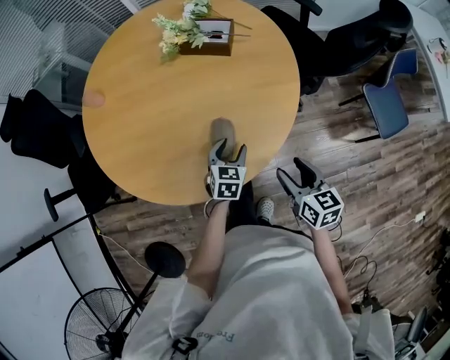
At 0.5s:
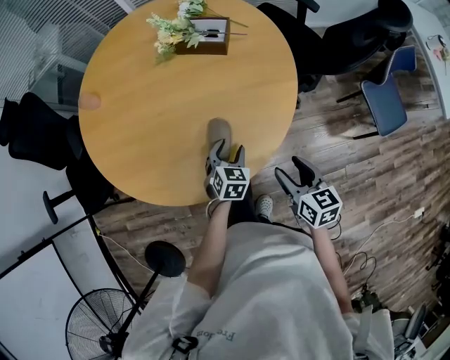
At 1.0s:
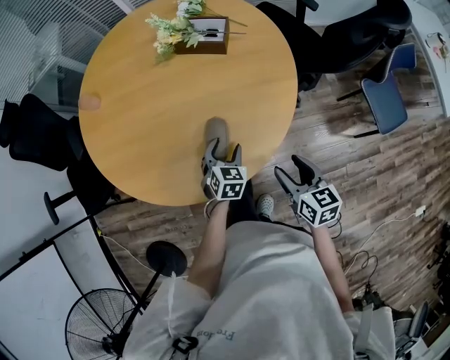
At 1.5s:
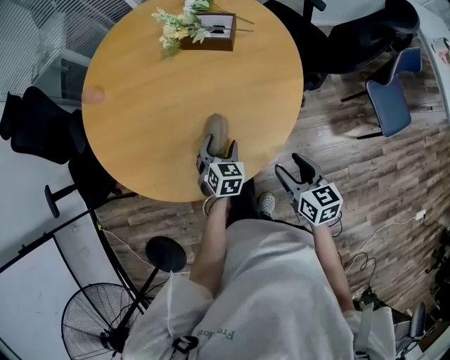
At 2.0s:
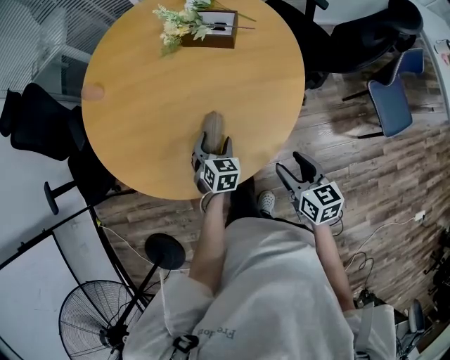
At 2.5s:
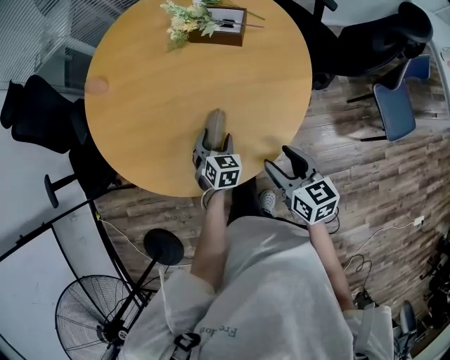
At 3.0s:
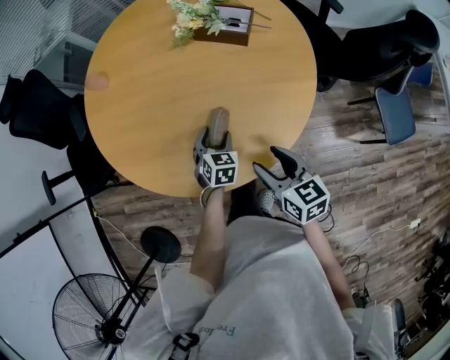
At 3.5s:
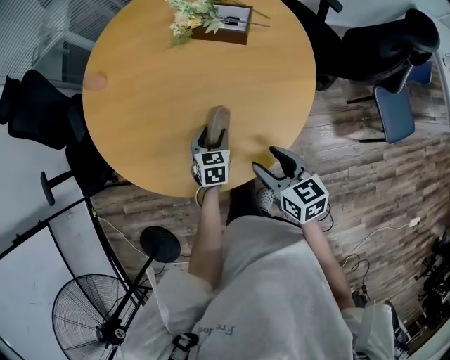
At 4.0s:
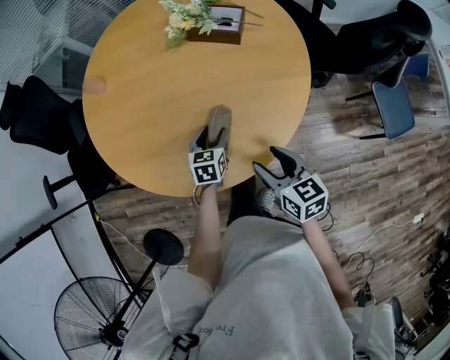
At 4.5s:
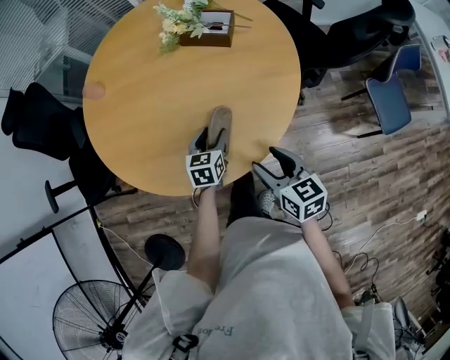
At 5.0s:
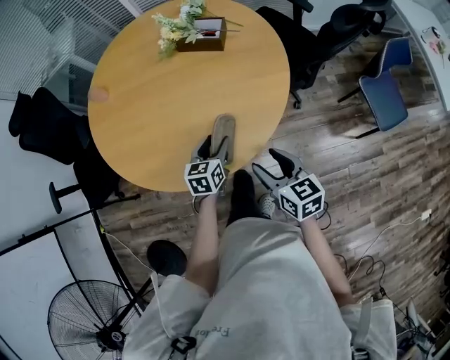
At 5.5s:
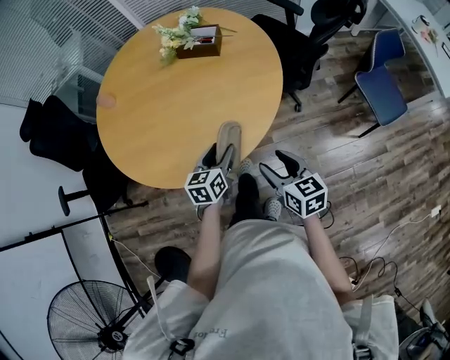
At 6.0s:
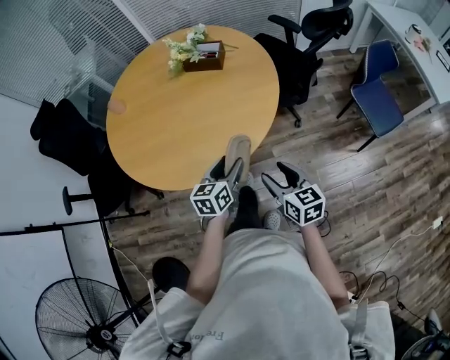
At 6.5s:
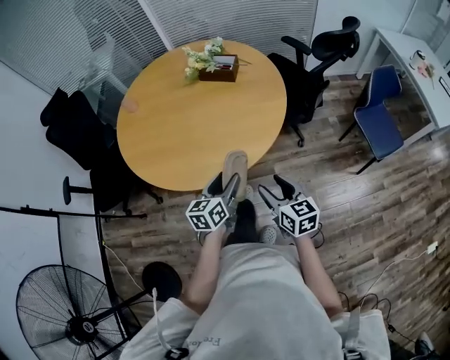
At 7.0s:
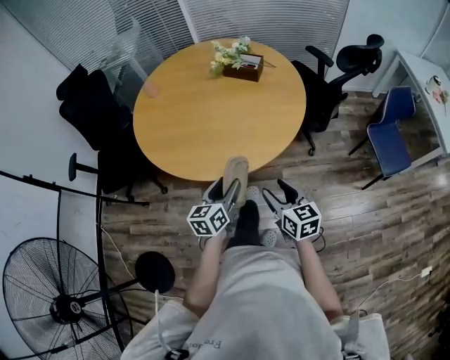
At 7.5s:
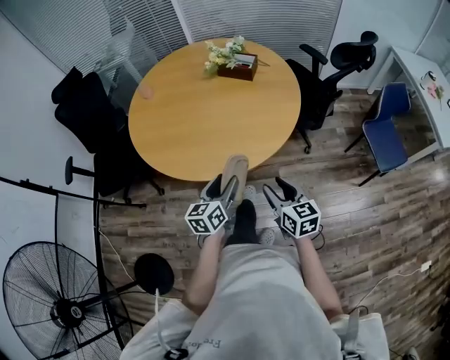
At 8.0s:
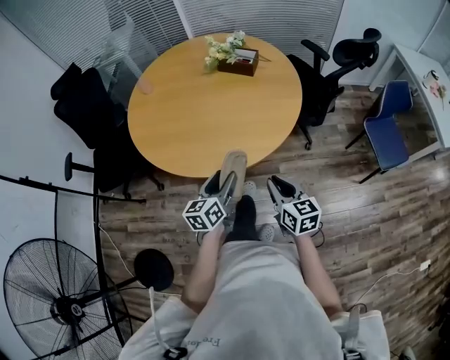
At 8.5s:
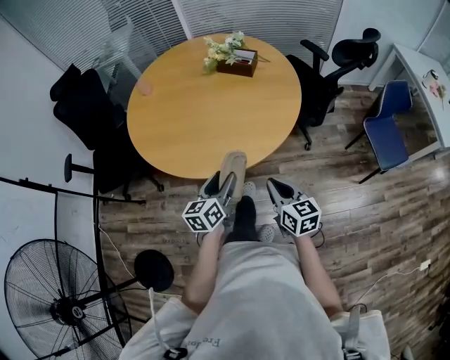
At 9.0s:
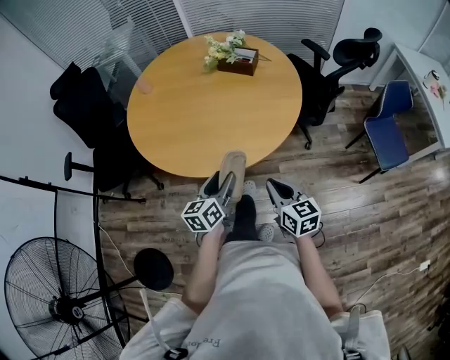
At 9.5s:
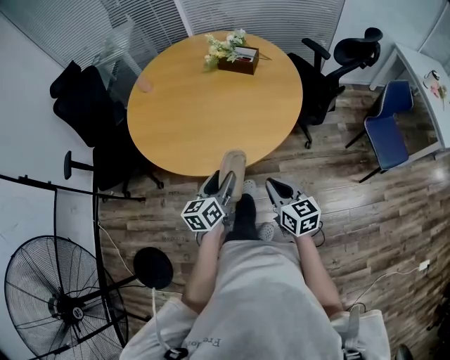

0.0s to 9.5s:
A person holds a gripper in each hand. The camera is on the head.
0.0s to 2.0s: The left gripper goes roughly 5 cm to the left.
2.0s to 4.0s: The right gripper heads to the left, covering some 5 cm. Meanwhile the left gripper rotates some 30 degrees.
4.0s to 5.5s: The left gripper travels backward, upward and to the right by approximately 20 cm; the right gripper shifts approximately 15 cm backward and to the right.
5.5s to 7.5s: The left gripper shifts about 15 cm backward, upward and to the left; the right gripper is displaced backward by some 10 cm.
7.5s to 9.5s: The right gripper closes.

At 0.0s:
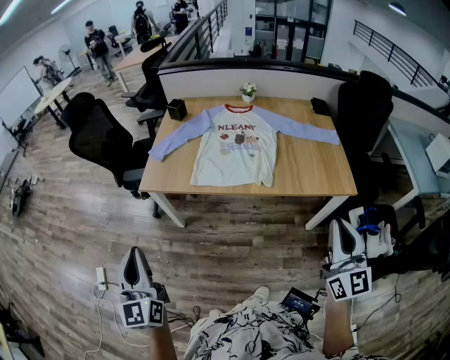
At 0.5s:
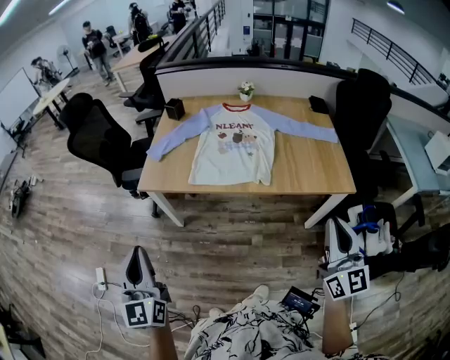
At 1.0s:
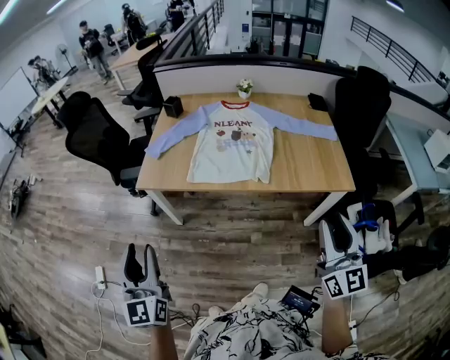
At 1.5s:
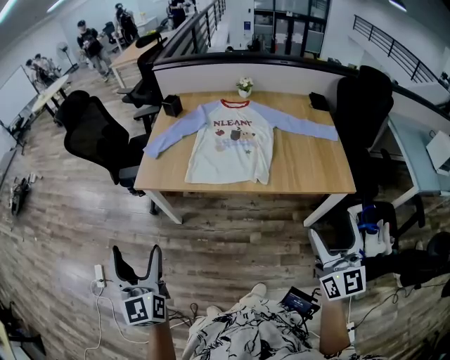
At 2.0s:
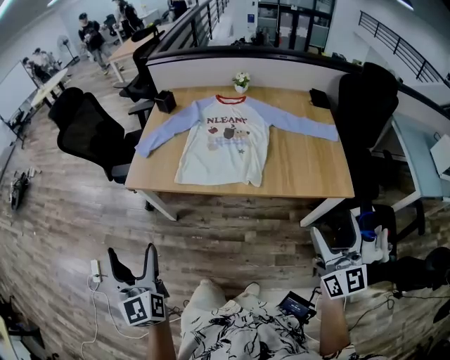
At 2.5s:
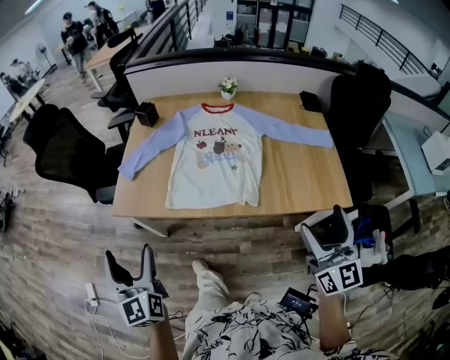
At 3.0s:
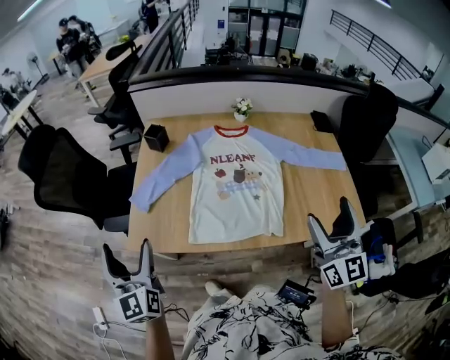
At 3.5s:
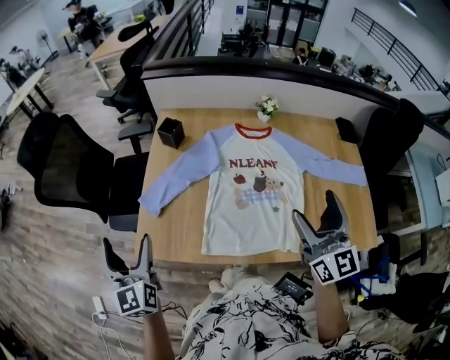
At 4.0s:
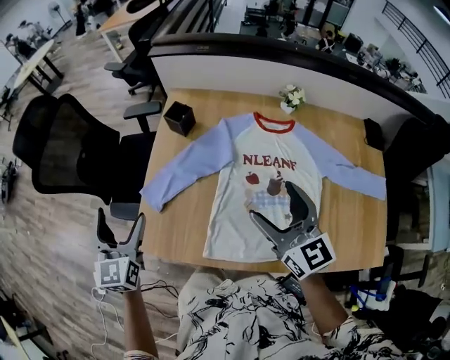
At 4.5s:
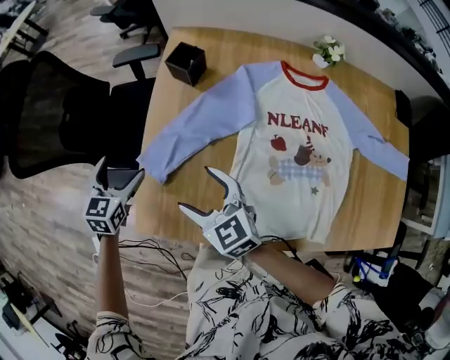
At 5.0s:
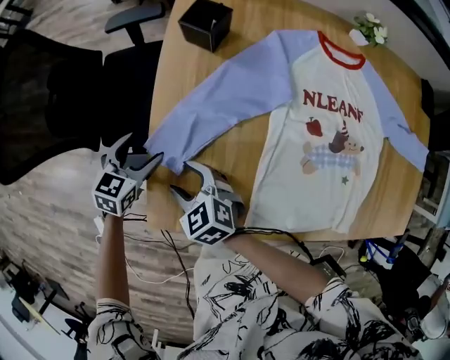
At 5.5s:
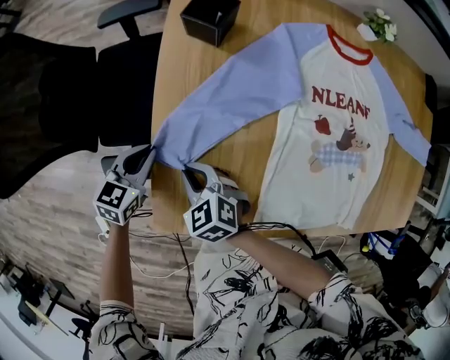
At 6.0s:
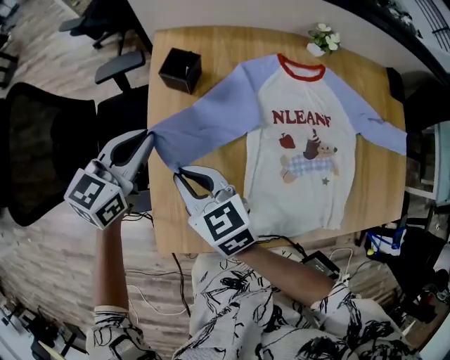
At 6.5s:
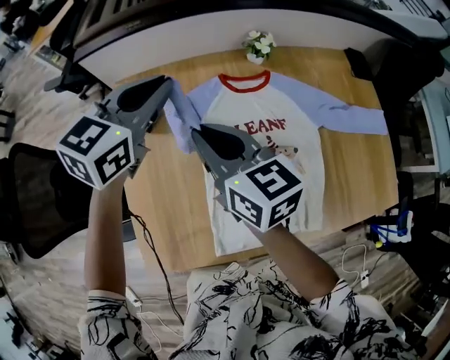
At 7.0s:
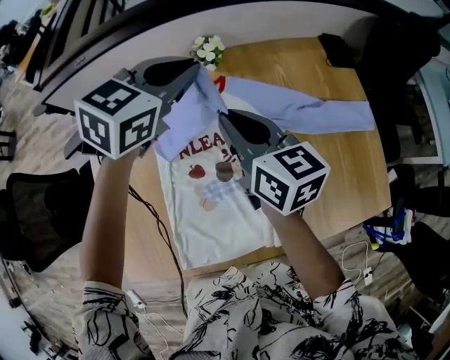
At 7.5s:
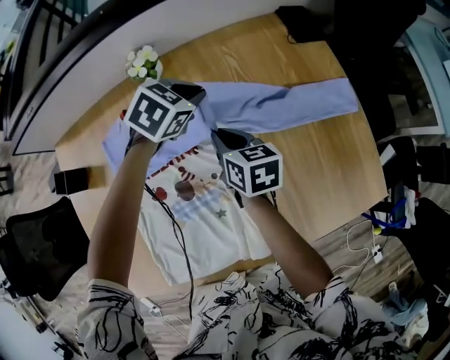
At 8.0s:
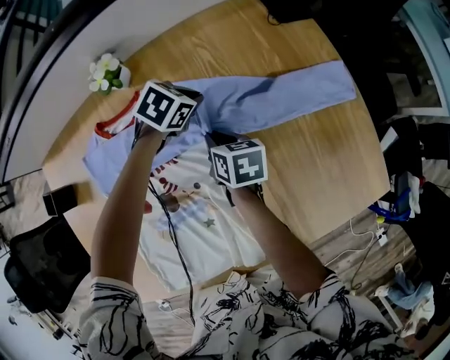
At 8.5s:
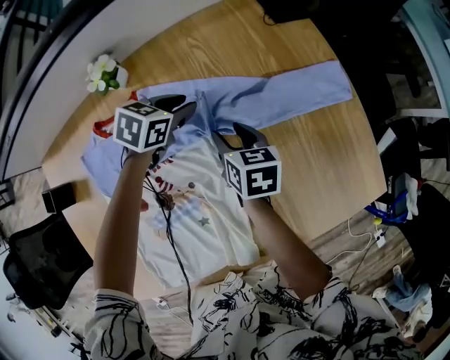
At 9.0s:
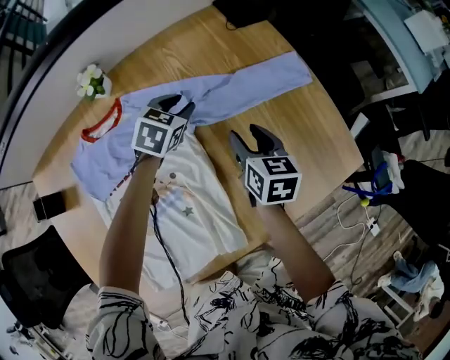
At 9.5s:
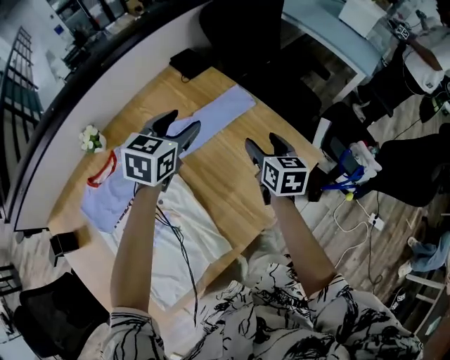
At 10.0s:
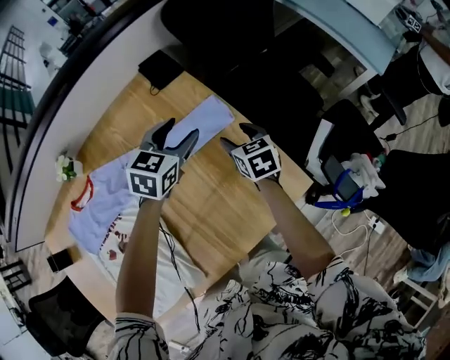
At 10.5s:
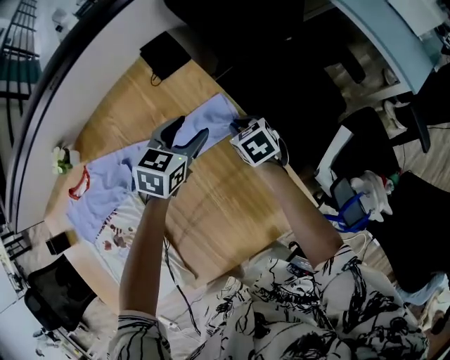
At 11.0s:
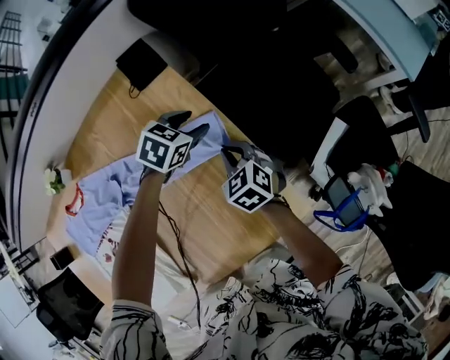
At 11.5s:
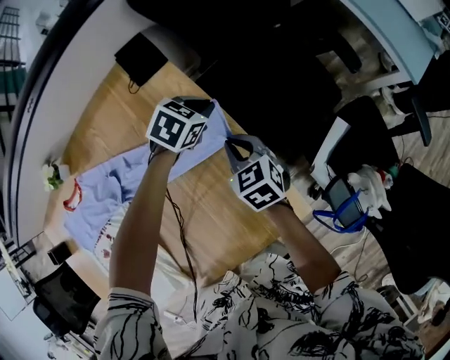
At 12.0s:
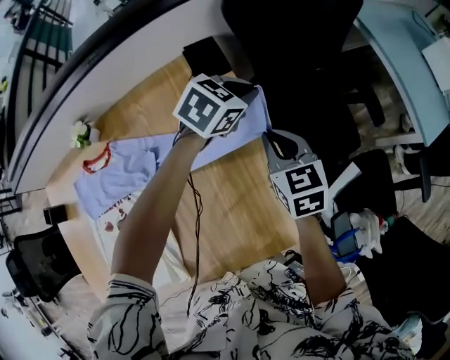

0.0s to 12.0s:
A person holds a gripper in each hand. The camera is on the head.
0.0s to 2.0s: The right gripper heads to the right and forward, covering about 10 cm, and opens. Meanwhile the left gripper travels to the right by some 5 cm, and opens its fingers.
2.0s to 4.0s: The two grippers travel together, forward, about 60 cm. The right gripper changes its angle by about 30 degrees.
4.0s to 6.0s: The right gripper heads to the left, downward and forward, covering some 35 cm, rotates some 30 degrees, and closes up. Meanwhile the left gripper goes about 20 cm forward, reaches roughly 30 cm downward, then returns, changes its angle by about 50 degrees, and closes its fingers.
6.0s to 8.0s: The two grippers travel together, about 70 cm. The right gripper rotates around the line of its fingers by approximately 40 degrees, clockwise from behind; the left gripper tilts its fingers some 40 degrees downward.
8.0s to 10.0s: The left gripper travels to the right and upward by roughly 35 cm, swivels roughly 30 degrees, and opens. The right gripper travels to the right by roughly 40 cm, rotates roughly 30 degrees, and opens.
10.0s to 12.0s: The right gripper travels upward and forward by approximately 10 cm, and closes up, while the left gripper moves forward, some 15 cm, and closes up.

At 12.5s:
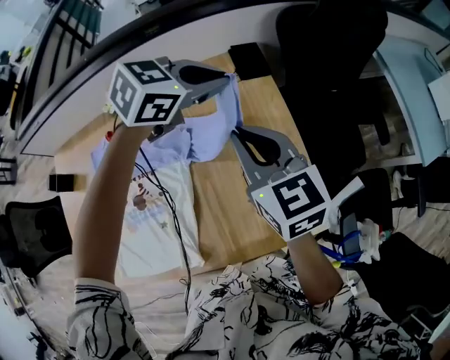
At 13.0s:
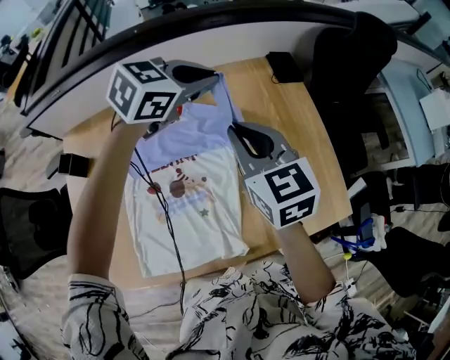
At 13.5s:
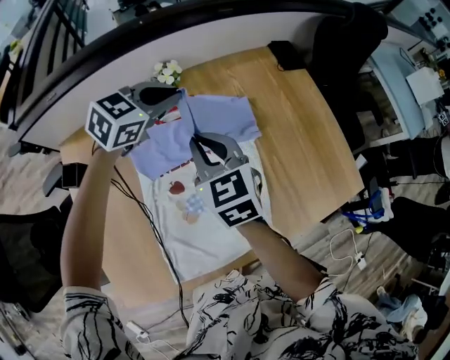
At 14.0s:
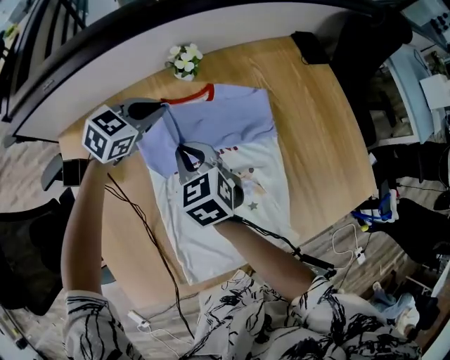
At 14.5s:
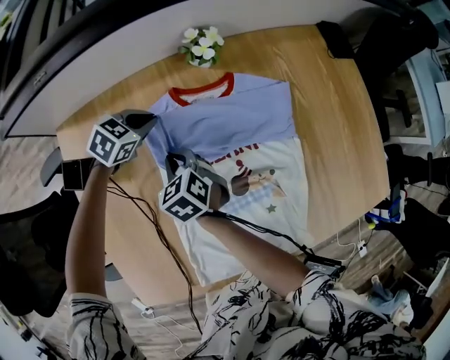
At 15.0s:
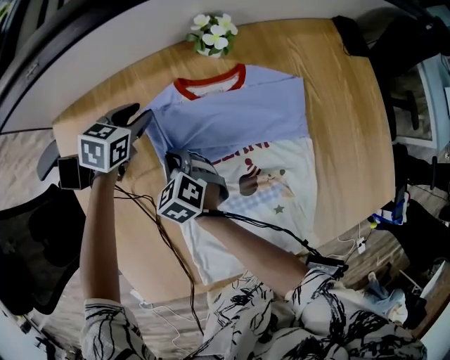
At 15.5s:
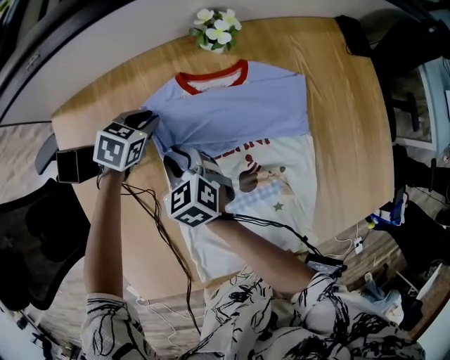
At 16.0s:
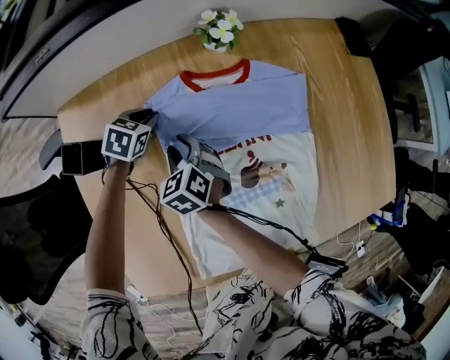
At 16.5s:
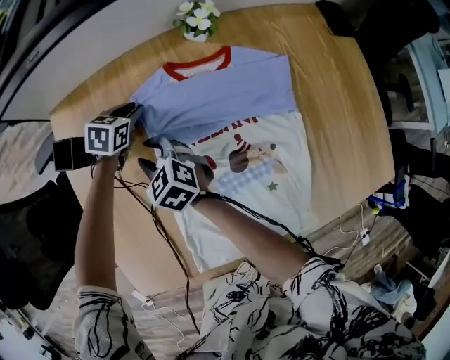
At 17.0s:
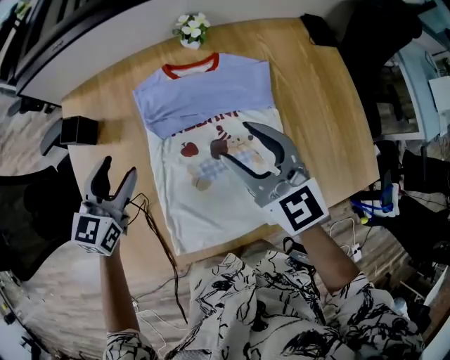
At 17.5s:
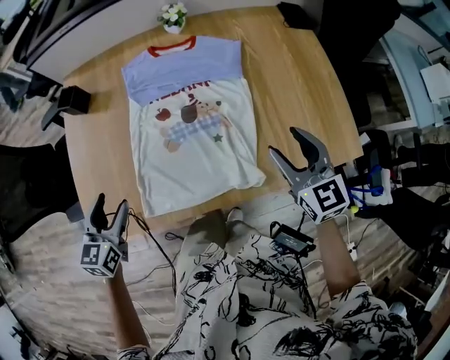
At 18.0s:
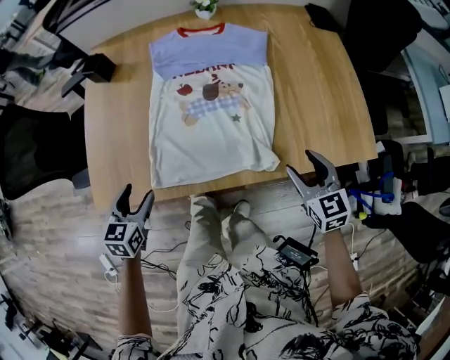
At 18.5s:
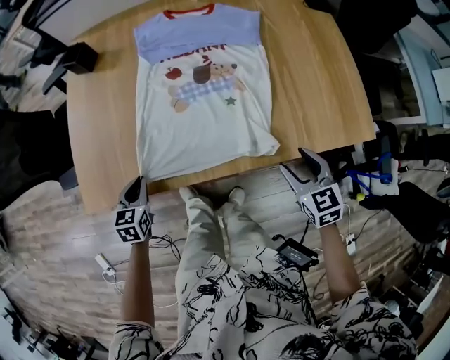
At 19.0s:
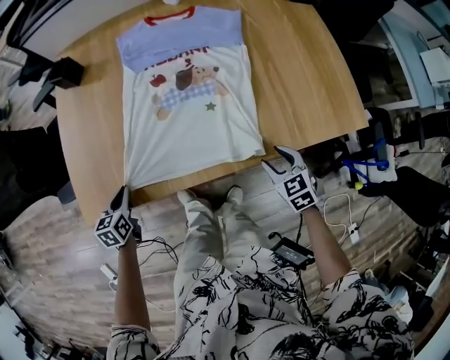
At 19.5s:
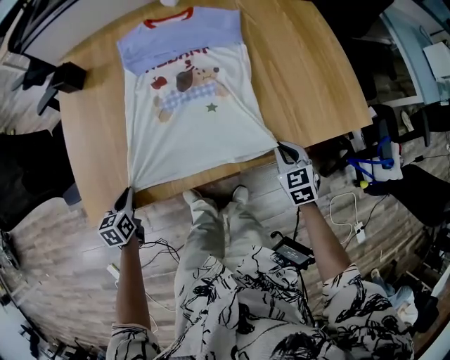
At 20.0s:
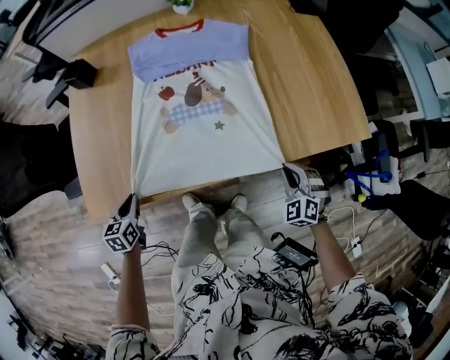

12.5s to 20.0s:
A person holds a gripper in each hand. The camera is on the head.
12.5s to 14.5s: The pair of grippers is taken to the left, approximately 60 cm. The grippers both shift downward by roughly 30 cm. The left gripper changes its angle by approximately 20 degrees, while the right gripper tilts its fingers some 30 degrees downward.
14.5s to 16.5s: The right gripper goes about 10 cm to the left and backward; the left gripper shifts roughly 5 cm to the left, and turns by approximately 20 degrees.
16.5s to 18.0s: The right gripper moves to the right and backward, roughly 60 cm, while the left gripper moves backward, some 50 cm, turns by roughly 30 degrees, and opens.
18.0s to 20.0s: The right gripper shifts roughly 15 cm downward and backward, swivels some 40 degrees, and closes its fingers. The left gripper moves downward and to the left, roughly 10 cm, and closes.
